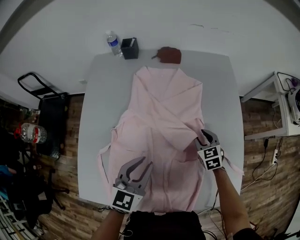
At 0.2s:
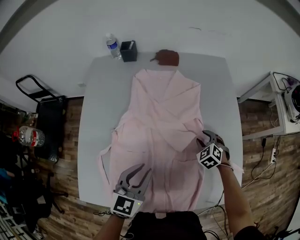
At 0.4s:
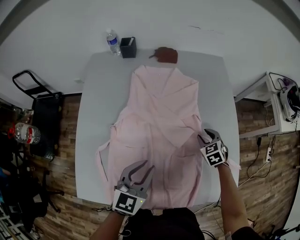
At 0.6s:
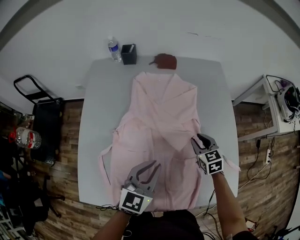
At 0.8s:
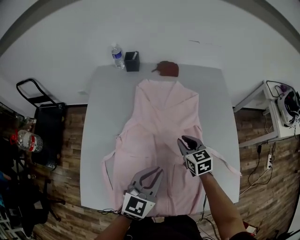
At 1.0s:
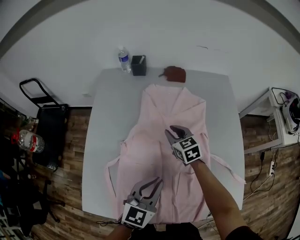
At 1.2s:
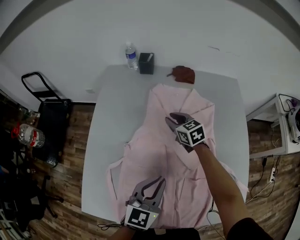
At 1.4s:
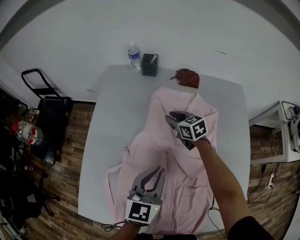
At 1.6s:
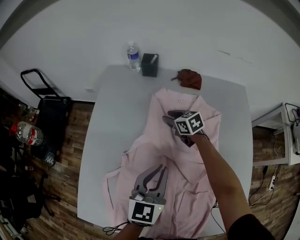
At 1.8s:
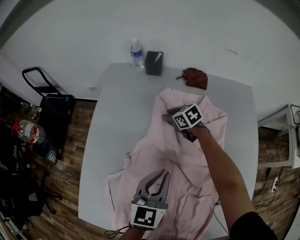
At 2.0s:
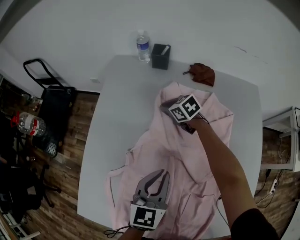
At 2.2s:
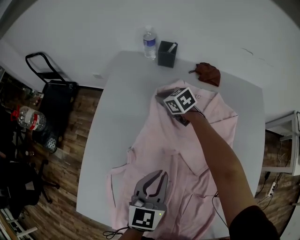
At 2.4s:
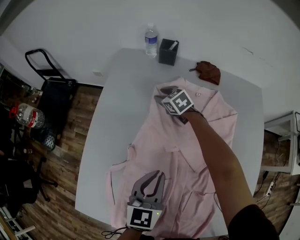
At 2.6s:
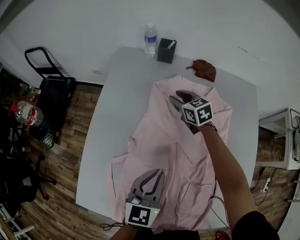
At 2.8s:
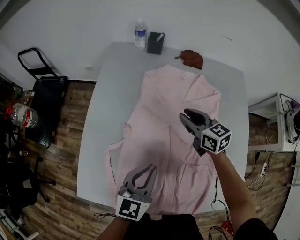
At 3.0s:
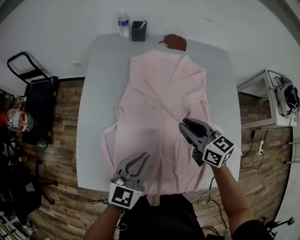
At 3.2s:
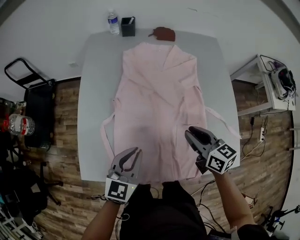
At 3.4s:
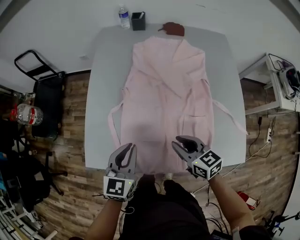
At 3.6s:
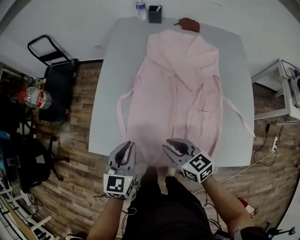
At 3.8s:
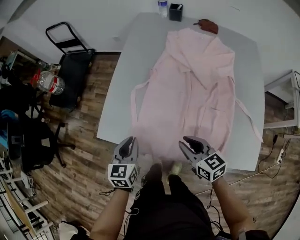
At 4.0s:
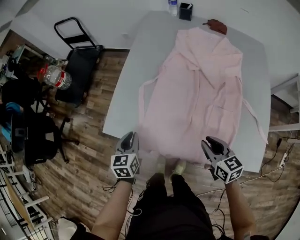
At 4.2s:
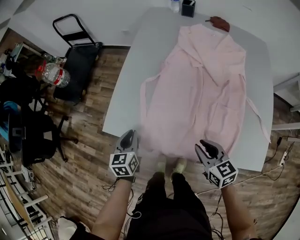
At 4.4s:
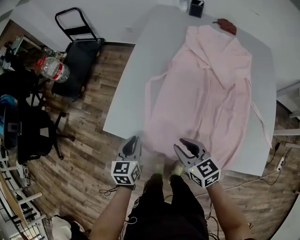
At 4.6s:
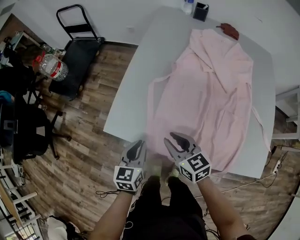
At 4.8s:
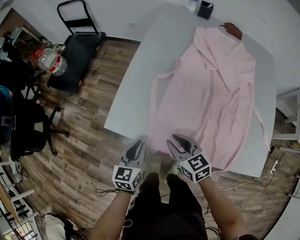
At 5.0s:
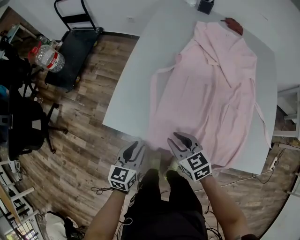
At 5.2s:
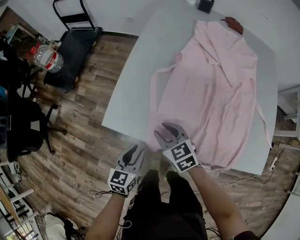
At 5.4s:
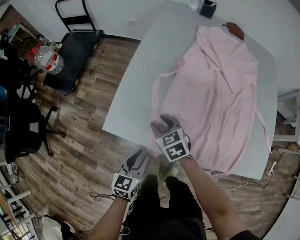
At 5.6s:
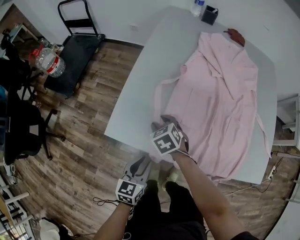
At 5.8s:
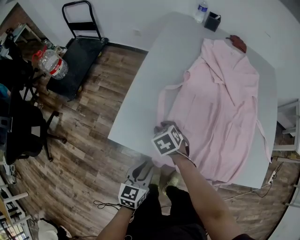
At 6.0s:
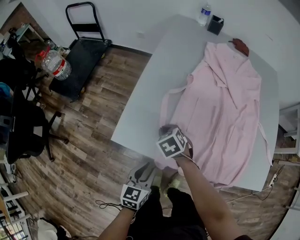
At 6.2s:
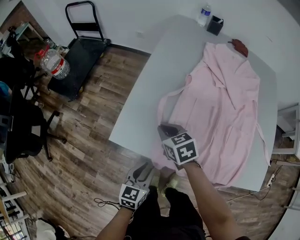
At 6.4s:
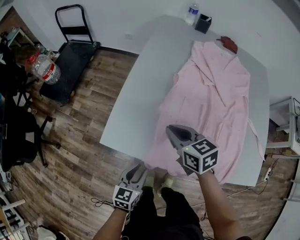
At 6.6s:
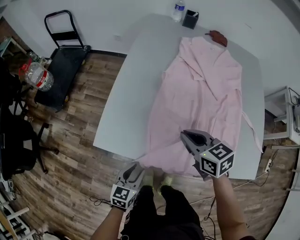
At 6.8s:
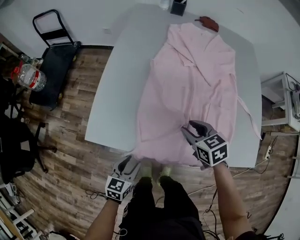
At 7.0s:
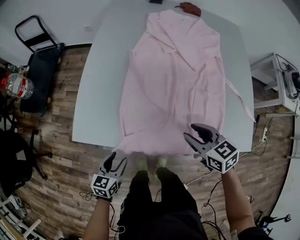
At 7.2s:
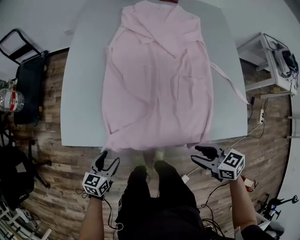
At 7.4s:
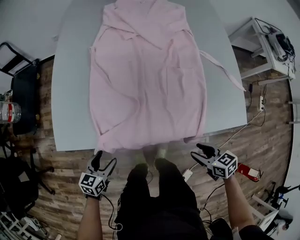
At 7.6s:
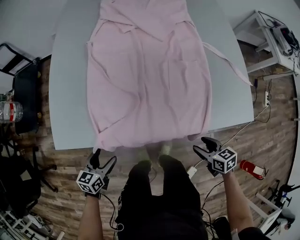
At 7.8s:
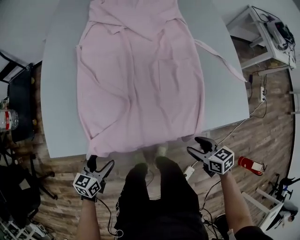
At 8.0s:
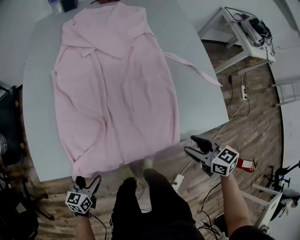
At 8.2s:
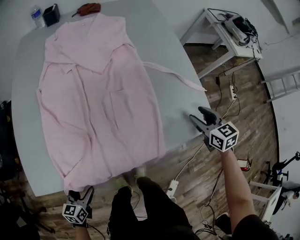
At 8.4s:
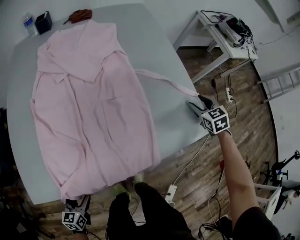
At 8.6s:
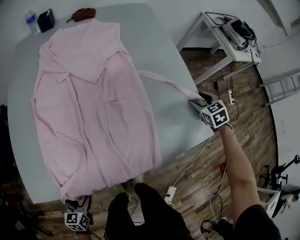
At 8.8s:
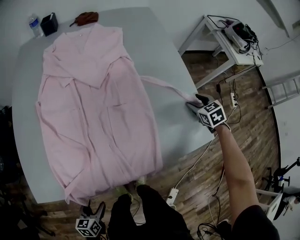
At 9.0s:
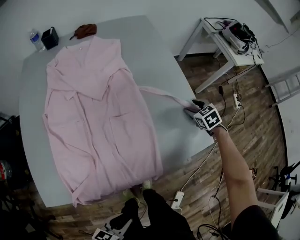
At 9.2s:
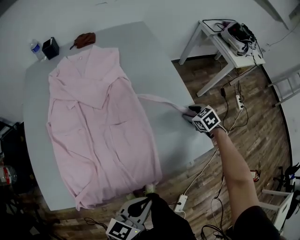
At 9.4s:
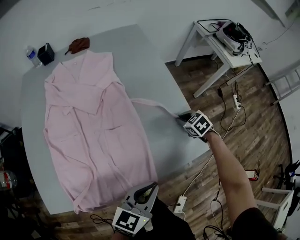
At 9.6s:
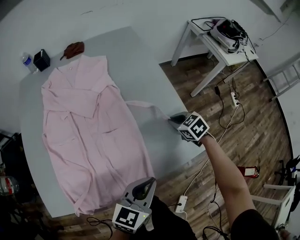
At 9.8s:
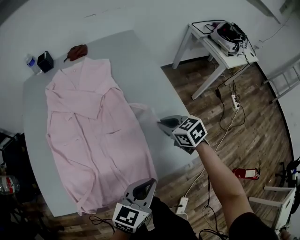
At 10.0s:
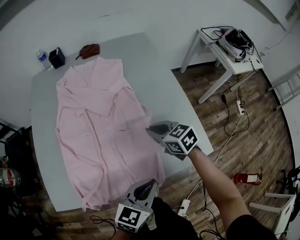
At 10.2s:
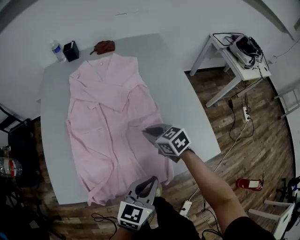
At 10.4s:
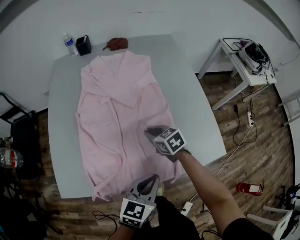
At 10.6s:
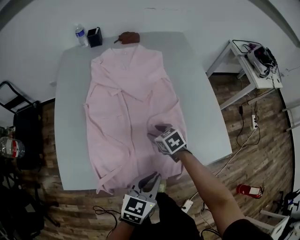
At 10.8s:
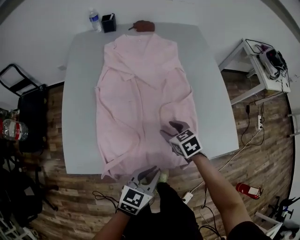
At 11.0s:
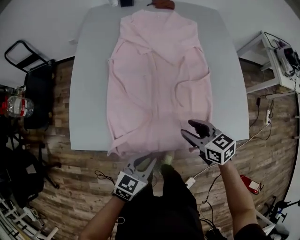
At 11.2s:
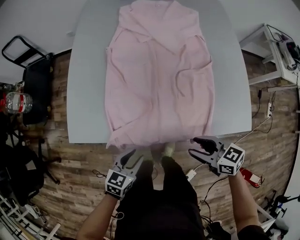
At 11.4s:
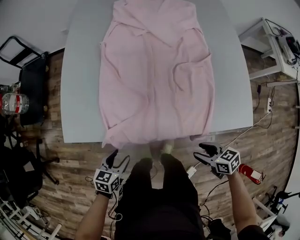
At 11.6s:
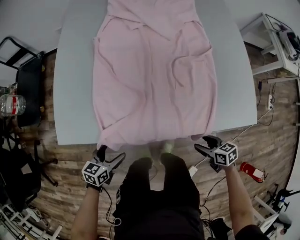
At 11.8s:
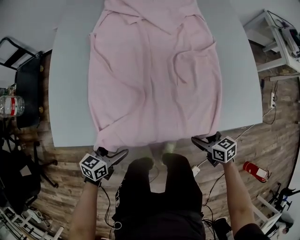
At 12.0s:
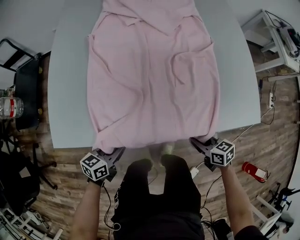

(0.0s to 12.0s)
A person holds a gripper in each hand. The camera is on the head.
0.0s - 1.6s: The right gripper reaches approximately 10 cm upward, then returns, and turns by some 30 degrees. The left gripper shifts by approximately 10 cm.
1.6s - 3.0s: The right gripper moves backward and upward, roughly 30 cm, and rotates some 20 degrees, while the left gripper moves backward and to the left, some 15 cm.
3.0s - 4.4s: The left gripper changes place by roughly 30 cm, and changes its angle by roughly 40 degrees. Meanwhile the right gripper ends up roughly 30 cm from where it was.
4.4s - 6.0s: The right gripper is displaced forward, downward and to the left by roughly 20 cm, and angles its fingers downward, by roughly 30 degrees, while the left gripper travels backward by approximately 5 cm.
6.0s - 7.6s: The left gripper shifts some 10 cm downward, changes its angle by approximately 20 degrees, and opens its fingers, while the right gripper heads to the right and backward, covering approximately 50 cm, rolls clockwise, seen from behind, by about 40 degrees, and opens its fingers.
7.6s - 9.0s: The right gripper ends up some 40 cm from where it was, and swivels roughly 30 degrees. Meanwhile the left gripper shifts by roughly 20 cm, rotates about 20 degrees, and closes up.
9.0s - 10.4s: The left gripper shifts by roughly 25 cm, rotates approximately 30 degrees, and closes; the right gripper goes upward and returns, approximately 10 cm each way, rotates some 30 degrees, and closes its fingers.
10.4s - 12.0s: The right gripper moves backward and downward, some 30 cm, and opens and closes again. Meanwhile the left gripper heads downward and to the left, covering some 30 cm, swivels some 20 degrees, and opens and closes again.

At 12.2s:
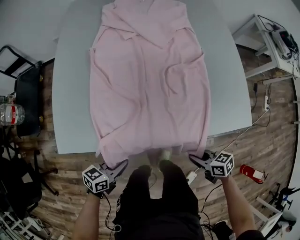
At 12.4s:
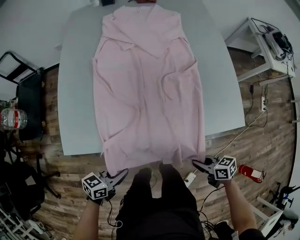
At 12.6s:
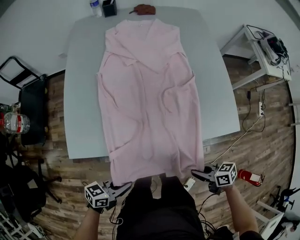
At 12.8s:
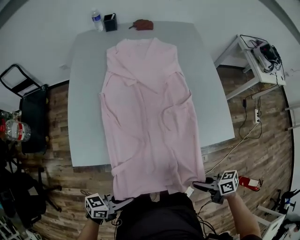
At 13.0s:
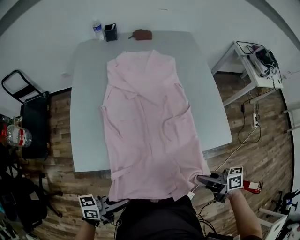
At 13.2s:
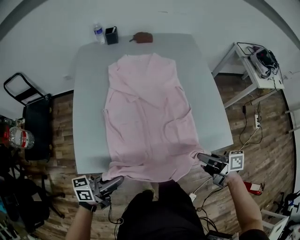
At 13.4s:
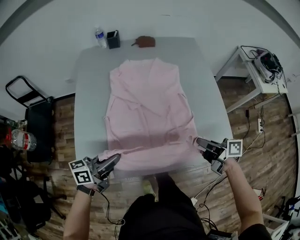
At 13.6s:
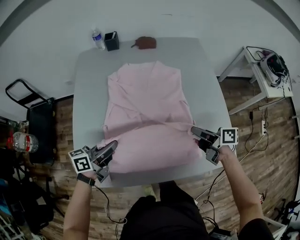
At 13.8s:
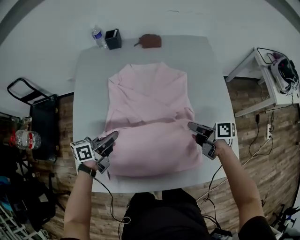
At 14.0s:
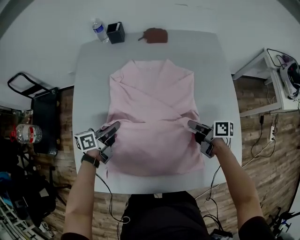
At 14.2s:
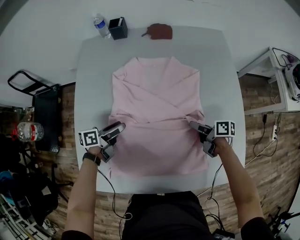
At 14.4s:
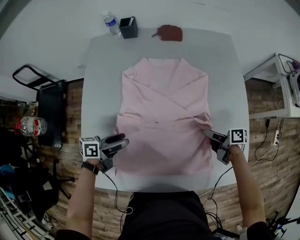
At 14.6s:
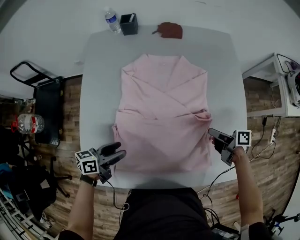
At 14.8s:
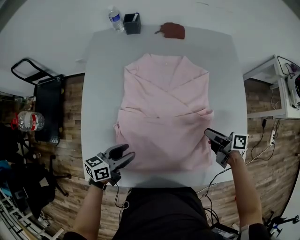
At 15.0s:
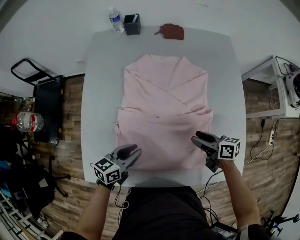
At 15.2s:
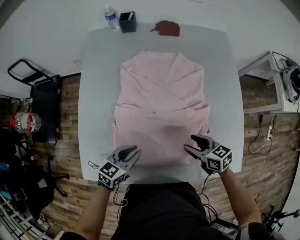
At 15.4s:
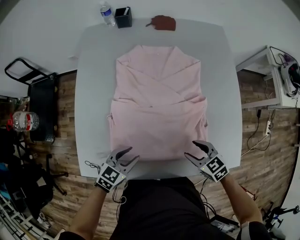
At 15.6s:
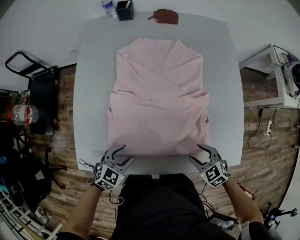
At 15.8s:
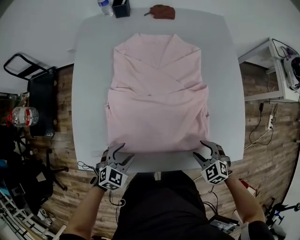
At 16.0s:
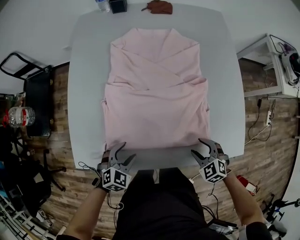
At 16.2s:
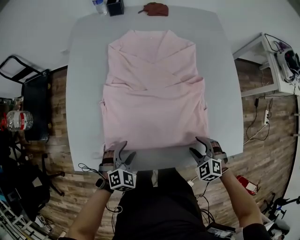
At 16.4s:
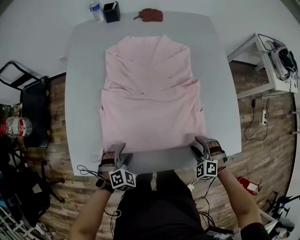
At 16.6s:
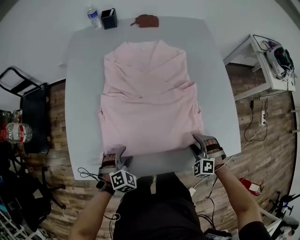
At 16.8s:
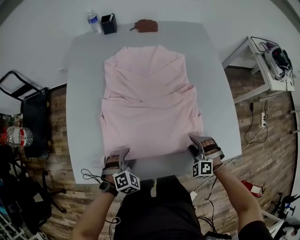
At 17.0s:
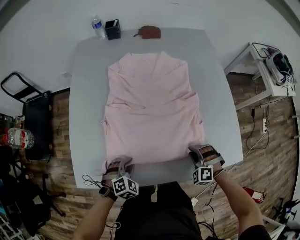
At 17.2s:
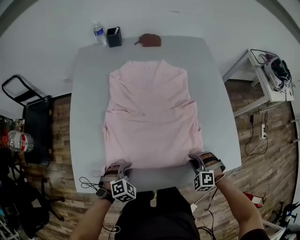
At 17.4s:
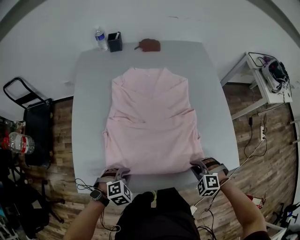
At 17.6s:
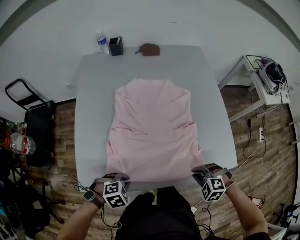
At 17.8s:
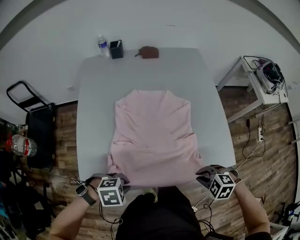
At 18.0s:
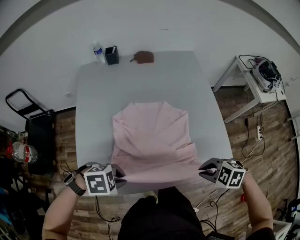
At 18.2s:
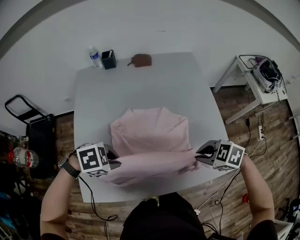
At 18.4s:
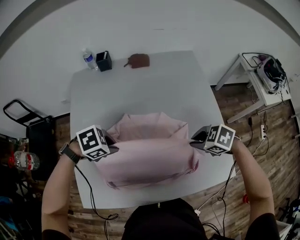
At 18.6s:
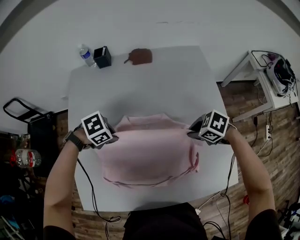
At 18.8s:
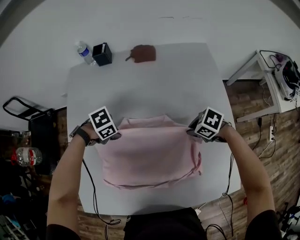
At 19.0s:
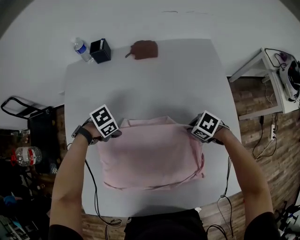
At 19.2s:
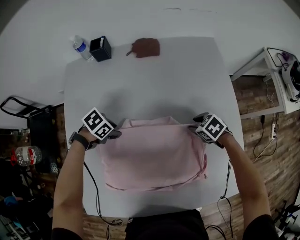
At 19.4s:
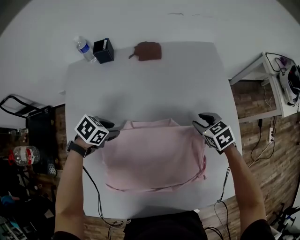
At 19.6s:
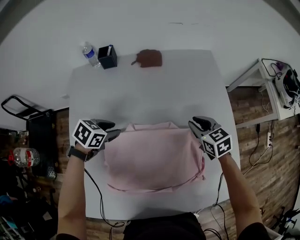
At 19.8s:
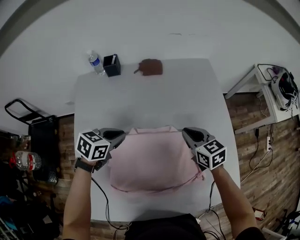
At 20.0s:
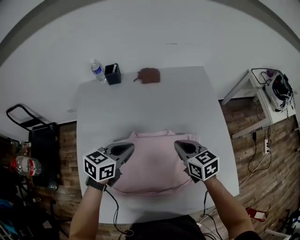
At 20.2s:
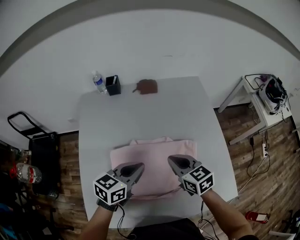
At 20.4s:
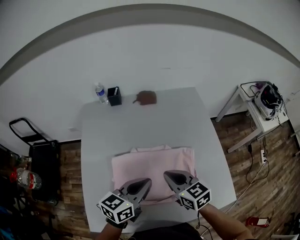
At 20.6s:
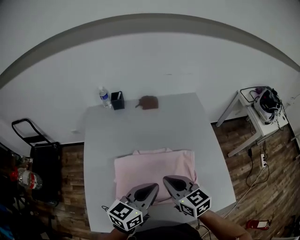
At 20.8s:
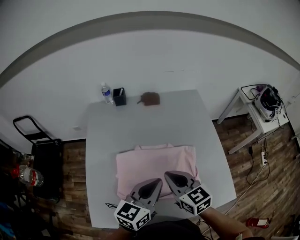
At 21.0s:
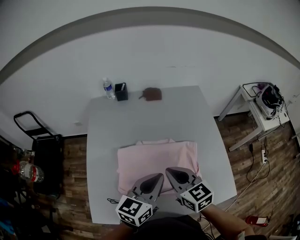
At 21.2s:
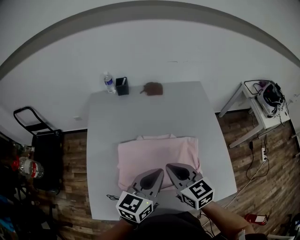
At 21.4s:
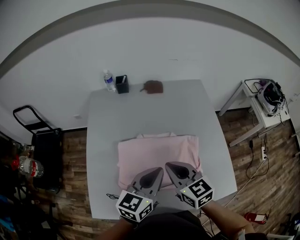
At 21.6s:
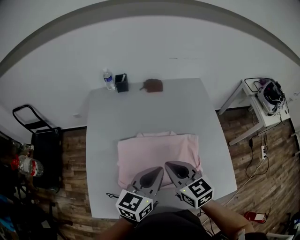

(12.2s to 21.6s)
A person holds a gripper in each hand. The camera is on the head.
12.2s - 13.8s: The right gripper moves roughly 40 cm, and changes its angle by roughly 30 degrees, while the left gripper ends up some 40 cm from where it was.
13.8s - 15.4s: Both grippers move backward, approximately 15 cm. The right gripper rolls counterclockwise, seen from behind, by some 50 degrees, and opens, while the left gripper turns by approximately 40 degrees, and opens.
15.4s - 17.0s: Both grippers move downward, approximately 10 cm. The left gripper turns by about 40 degrees, while the right gripper twists roughly 50 degrees counterclockwise, seen from behind, and closes.
17.0s - 18.4s: The grippers both shift upward by about 15 cm. The right gripper turns by about 50 degrees. Meanwhile the left gripper changes its angle by about 40 degrees.
18.4s - 20.0s: The right gripper moves about 15 cm downward and comes back, tips its fingers upward by approximately 30 degrees, and opens and closes again. Meanwhile the left gripper reaches approximately 15 cm downward, then returns, points its fingers about 40 degrees further upward, and opens and closes again.
20.0s - 21.6s: The left gripper is displaced backward, upward and to the right by about 20 cm, and changes its angle by about 20 degrees. Meanwhile the right gripper travels backward, upward and to the left by approximately 20 cm.

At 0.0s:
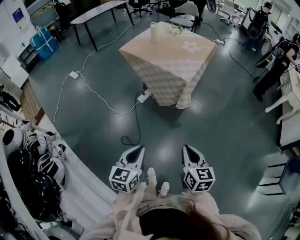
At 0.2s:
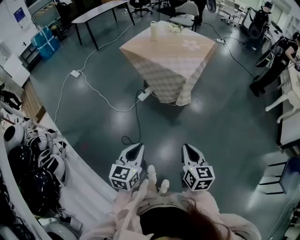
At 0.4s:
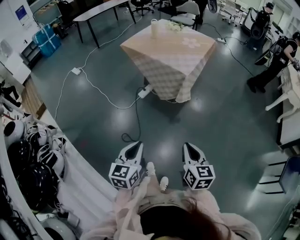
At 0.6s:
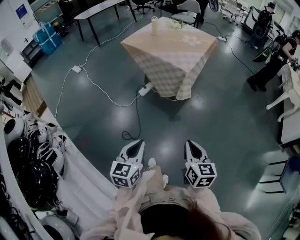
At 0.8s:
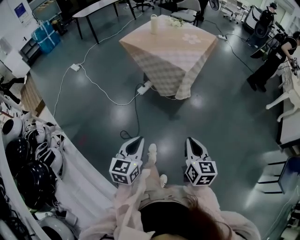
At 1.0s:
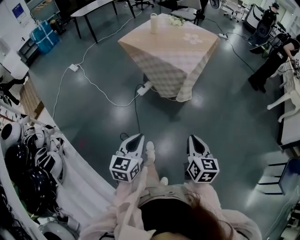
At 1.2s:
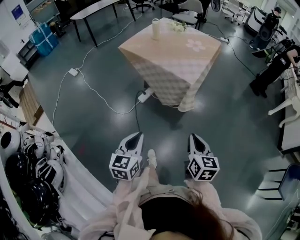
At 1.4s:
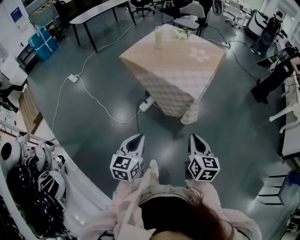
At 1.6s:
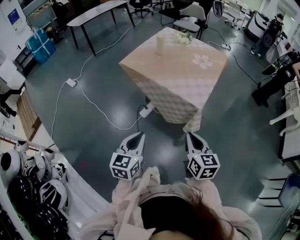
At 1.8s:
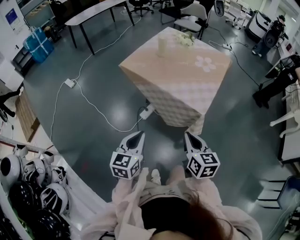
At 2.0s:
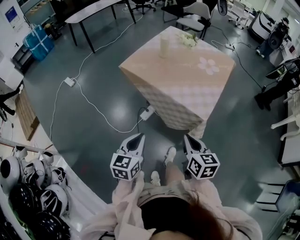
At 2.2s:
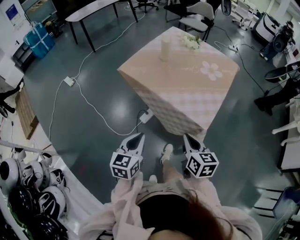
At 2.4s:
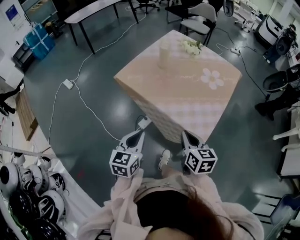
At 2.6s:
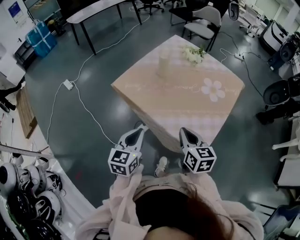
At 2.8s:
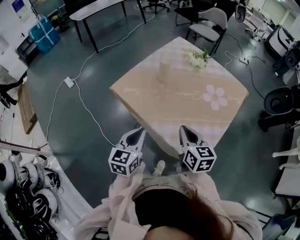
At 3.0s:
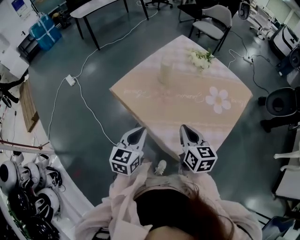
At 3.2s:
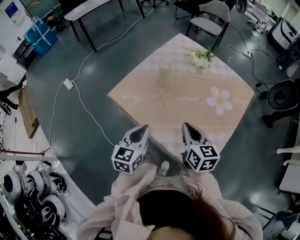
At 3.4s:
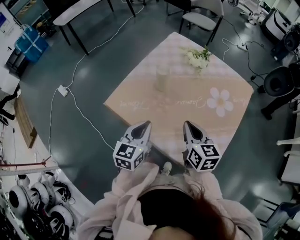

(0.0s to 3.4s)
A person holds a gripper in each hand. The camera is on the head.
0.0s - 1.6s: The grippers both shift forward by some 25 cm.
1.6s - 3.4s: Both grippers are carried forward, some 50 cm.
